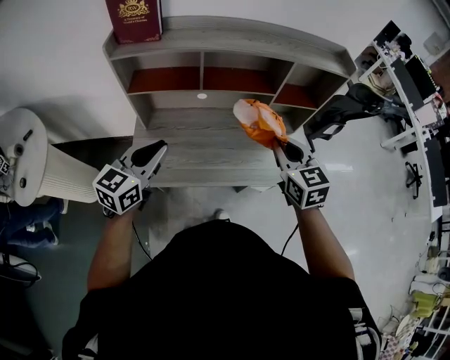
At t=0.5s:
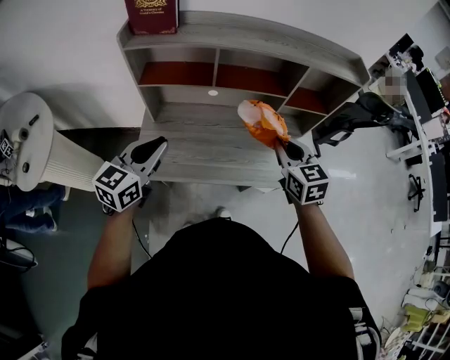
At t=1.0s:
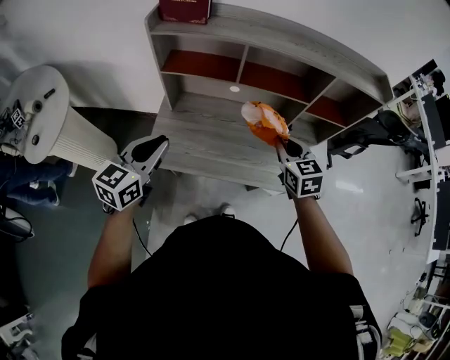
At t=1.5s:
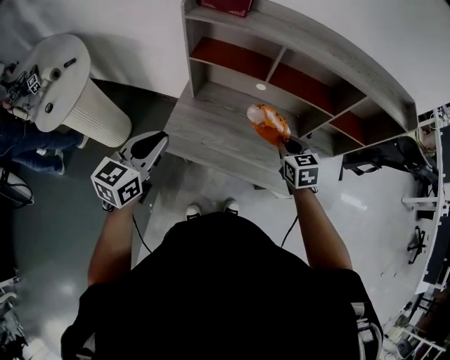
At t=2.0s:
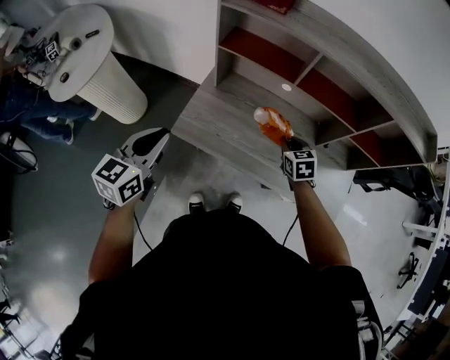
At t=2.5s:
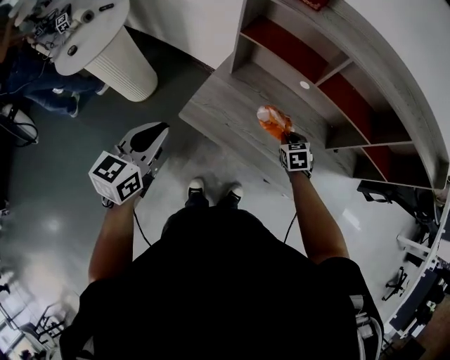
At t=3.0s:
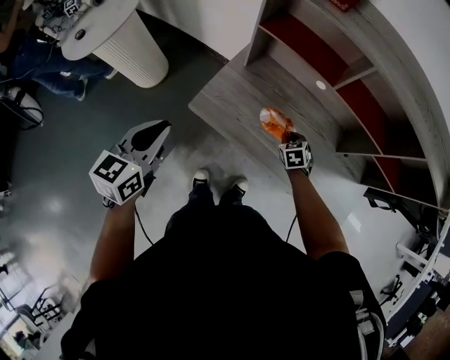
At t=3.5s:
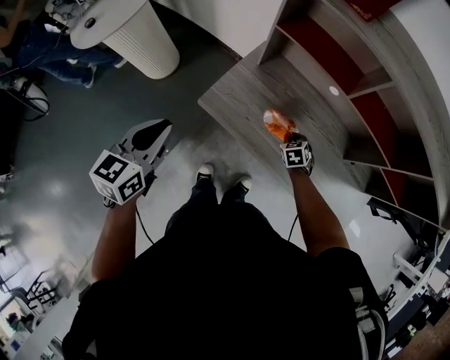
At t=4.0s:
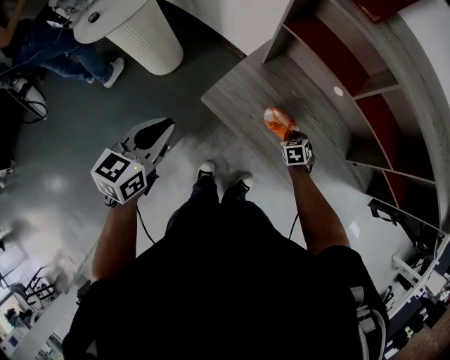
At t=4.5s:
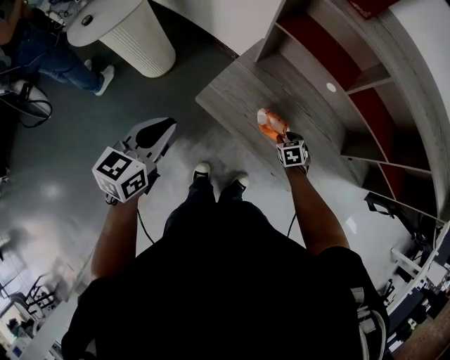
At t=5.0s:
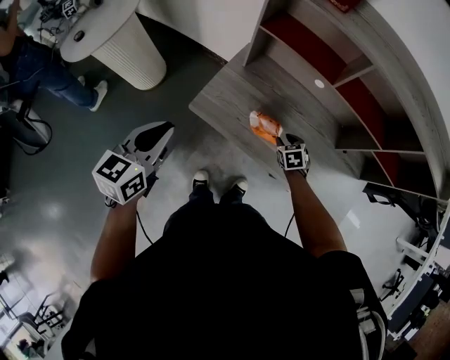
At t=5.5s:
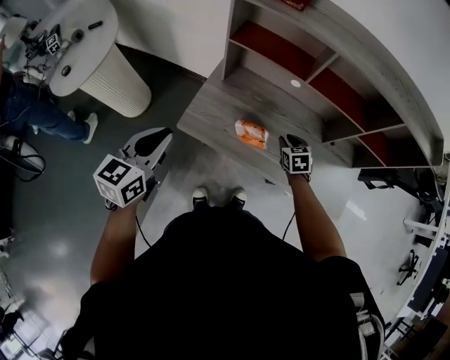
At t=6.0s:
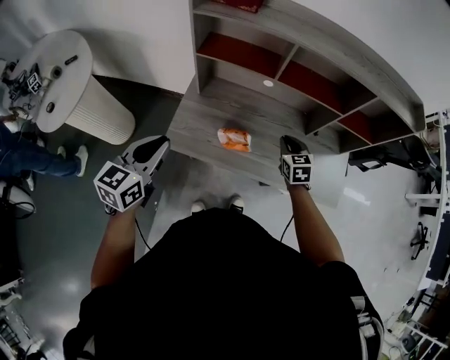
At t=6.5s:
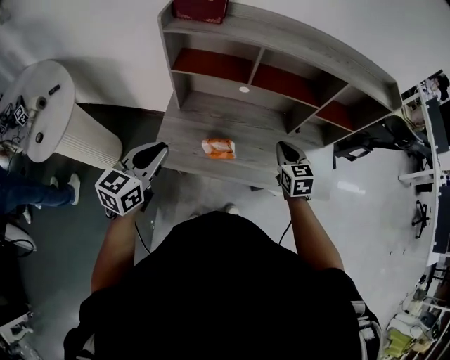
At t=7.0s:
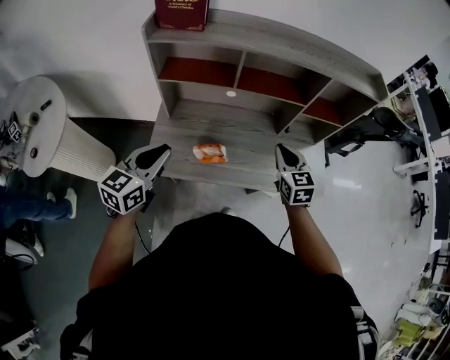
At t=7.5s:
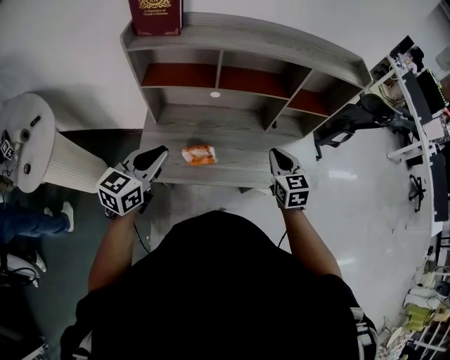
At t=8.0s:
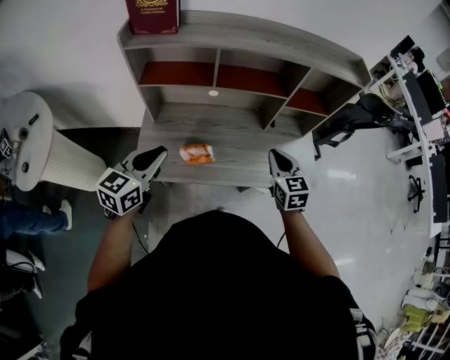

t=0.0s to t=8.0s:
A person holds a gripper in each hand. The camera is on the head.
t=0.0s to t=2.0s: The right gripper moves downward, to the left and forward, about 30 cm, and changes its angle by about 30 degrees. The left gripper goes approximately 15 cm to the left and backward, and turns by roughly 30 degrees.
t=2.0s to t=4.0s: The right gripper is displaced downward by approximately 20 cm, and changes its angle by approximately 20 degrees; the left gripper goes some 10 cm to the left and downward.
t=4.0s to t=6.0s: The right gripper goes roughly 25 cm upward and to the right, turns by approximately 40 degrees, and opens, then closes again. The left gripper heads to the right and upward, covering some 10 cm, and swivels roughly 20 degrees.
t=6.0s to t=8.0s: The left gripper goes about 10 cm to the right and forward. Meanwhile the right gripper is displaced upward, to the right and backward by approximately 15 cm.

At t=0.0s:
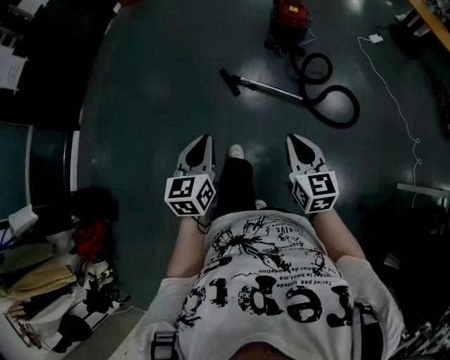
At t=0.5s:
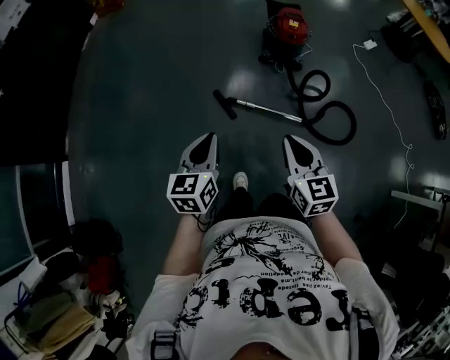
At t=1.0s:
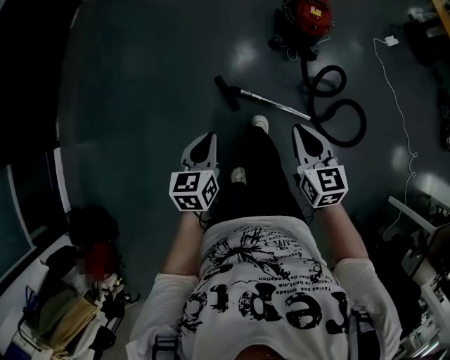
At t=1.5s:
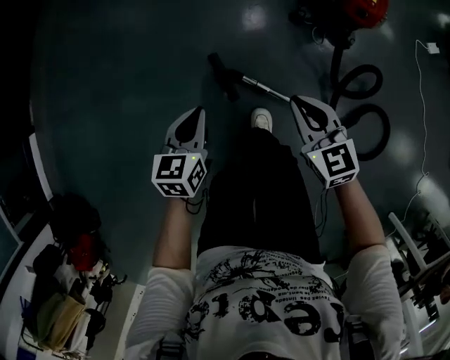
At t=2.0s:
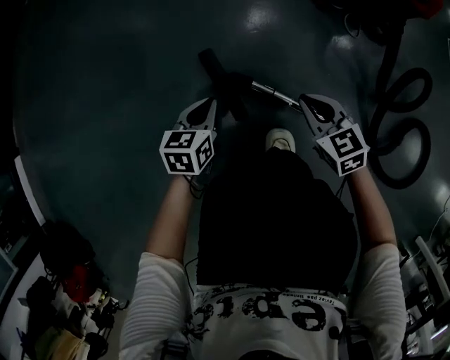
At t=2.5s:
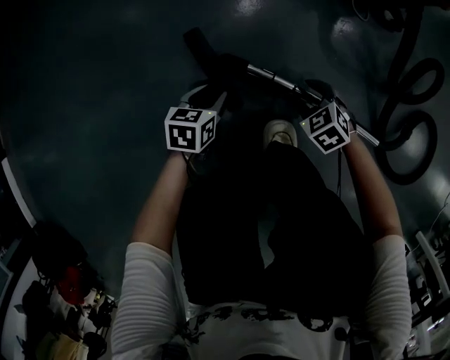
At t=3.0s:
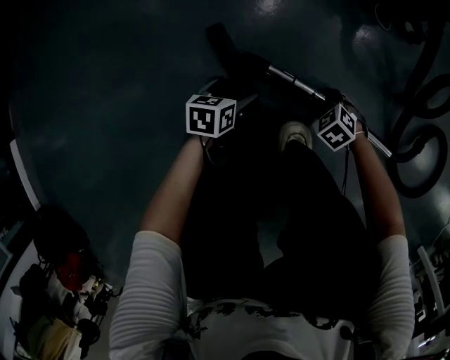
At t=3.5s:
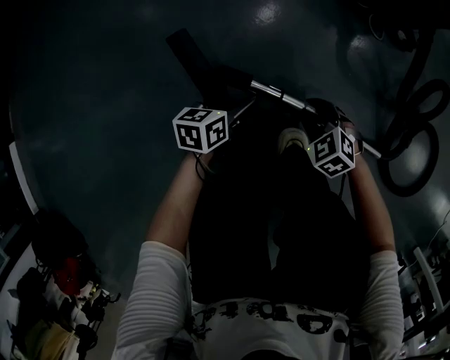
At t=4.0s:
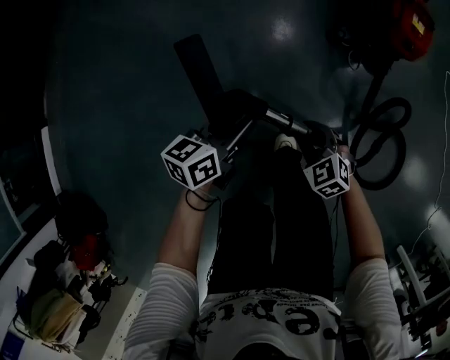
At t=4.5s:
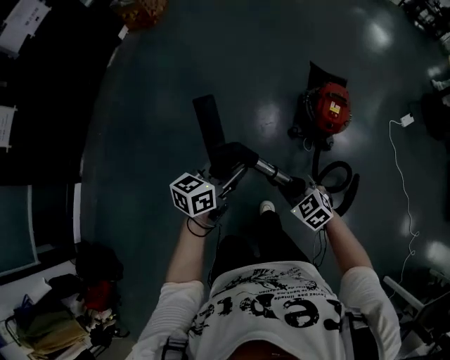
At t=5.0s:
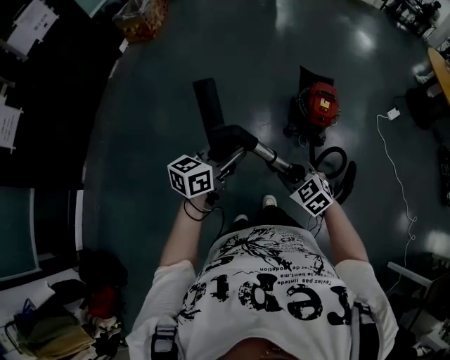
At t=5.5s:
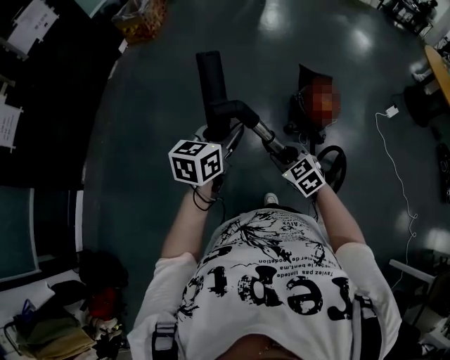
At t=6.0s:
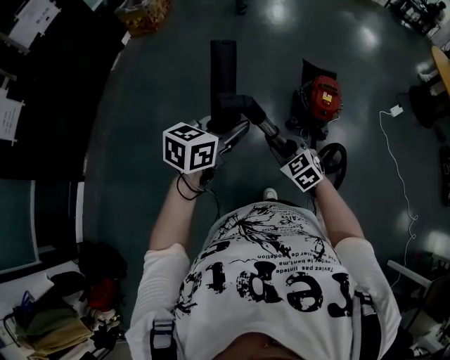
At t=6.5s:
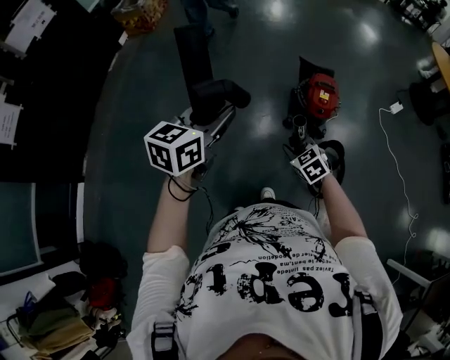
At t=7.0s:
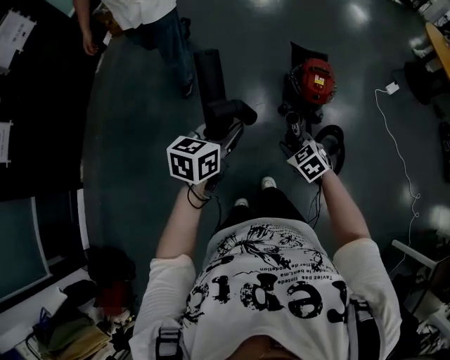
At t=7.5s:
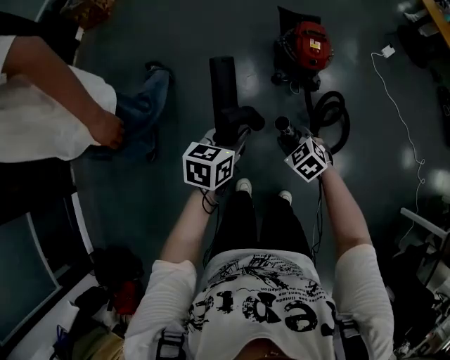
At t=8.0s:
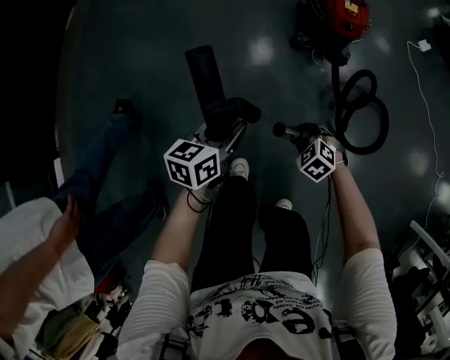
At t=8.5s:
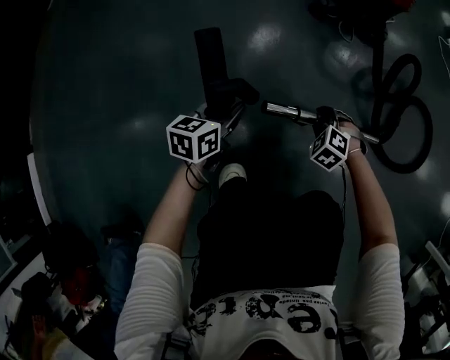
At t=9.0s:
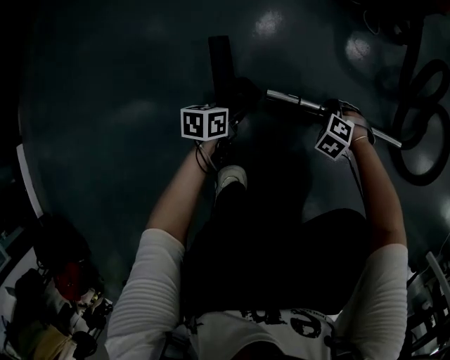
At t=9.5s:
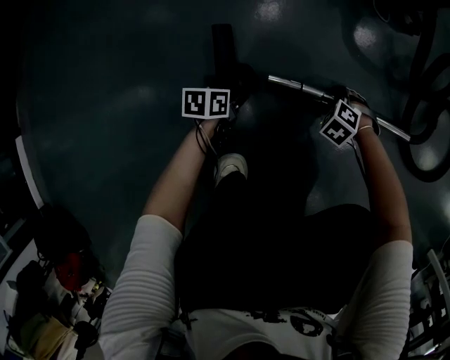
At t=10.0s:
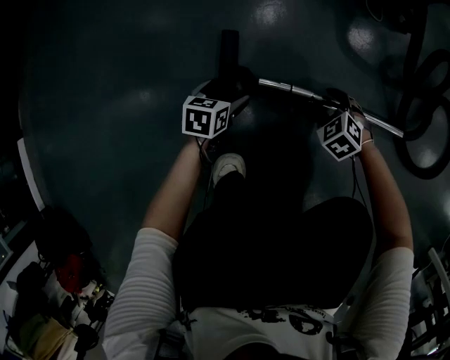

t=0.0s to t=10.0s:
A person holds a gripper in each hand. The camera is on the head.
t=0.0s to t=2.0s: Both grippers are carried forward, some 60 cm. The two grippers go some 80 cm downward. The left gripper swivels roughly 30 degrees; the right gripper swivels about 30 degrees.
t=2.0s to t=4.0s: The left gripper goes approximately 30 cm upward, rotates some 20 degrees, and opens and closes again. Meanwhile the right gripper moves upward, approximately 20 cm, changes its angle by some 30 degrees, and opens its fingers.
t=4.0s to t=6.0s: The grippers both shift upward by roughly 60 cm. The left gripper turns by roughly 30 degrees.
t=6.0s to t=8.0s: The grippers both shift downward by about 40 cm. The right gripper changes its angle by some 30 degrees.
t=8.0s to t=10.0s: The two grippers go roughly 50 cm downward. The left gripper changes its angle by some 20 degrees, and opens its fingers; the right gripper opens.

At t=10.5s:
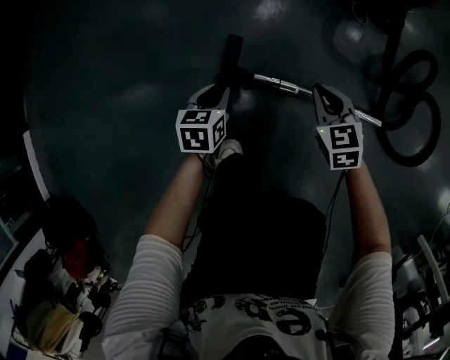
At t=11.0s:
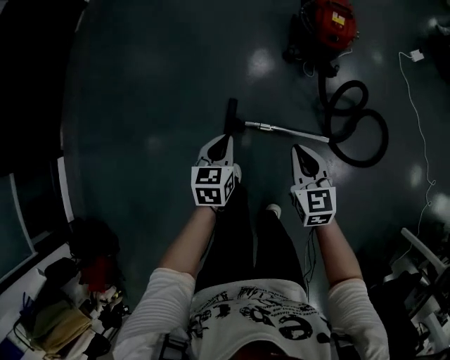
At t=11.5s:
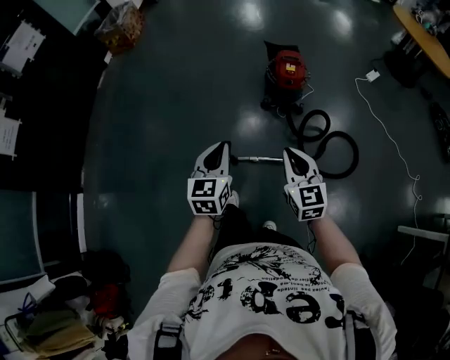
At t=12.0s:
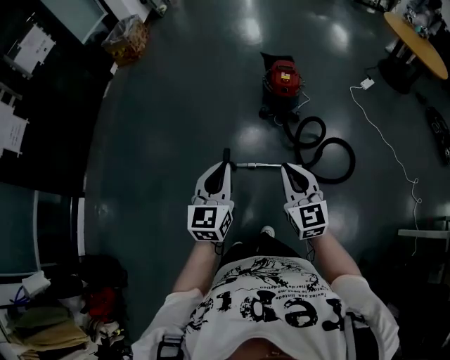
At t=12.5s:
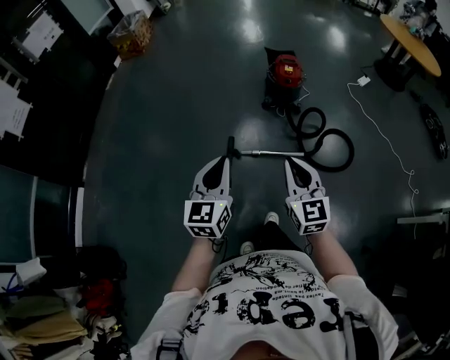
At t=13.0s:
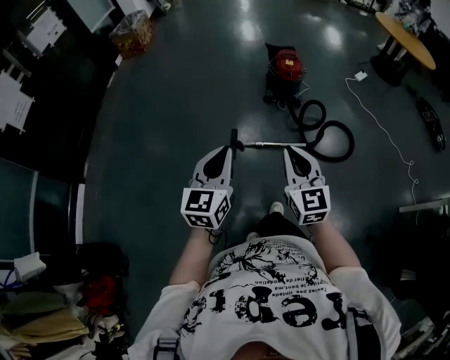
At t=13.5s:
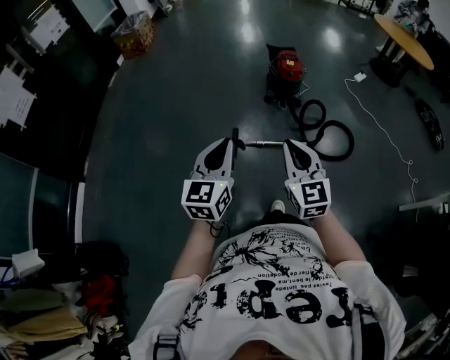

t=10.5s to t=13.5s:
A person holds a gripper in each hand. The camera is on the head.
t=10.5s to t=12.0s: The two grippers go some 90 cm upward. The right gripper angles its fingers upward, by some 30 degrees. The left gripper tips its fingers upward by approximately 40 degrees.
t=12.0s to t=13.5s: Both grippers travel together backward and to the left, about 25 cm.

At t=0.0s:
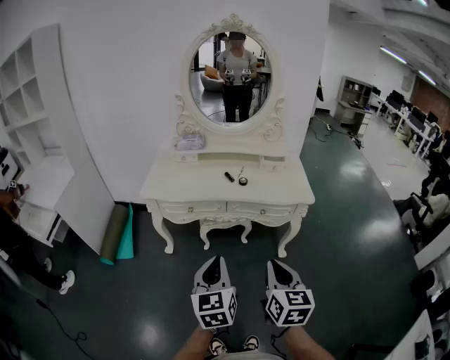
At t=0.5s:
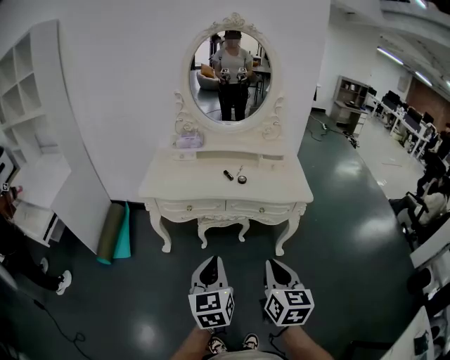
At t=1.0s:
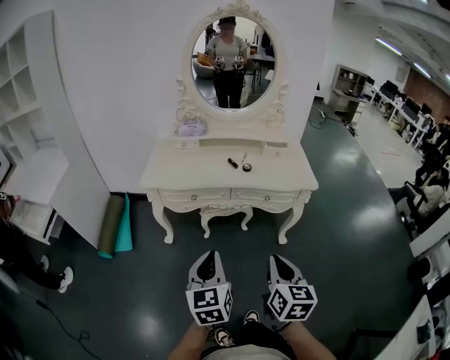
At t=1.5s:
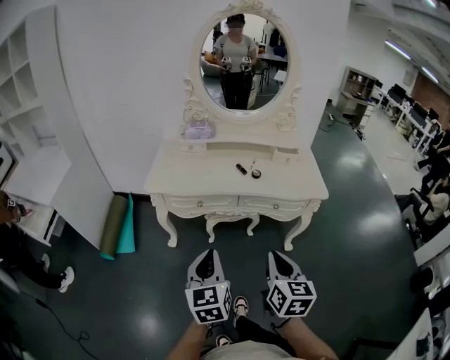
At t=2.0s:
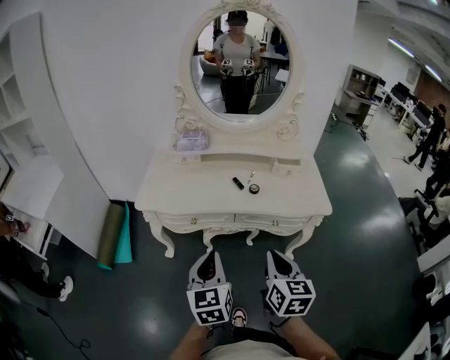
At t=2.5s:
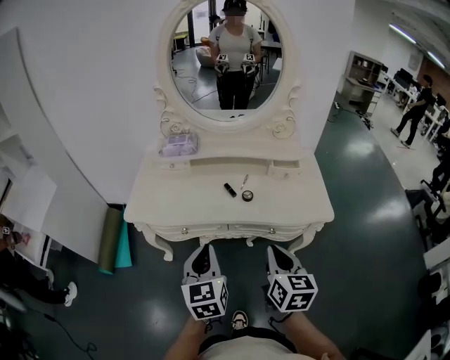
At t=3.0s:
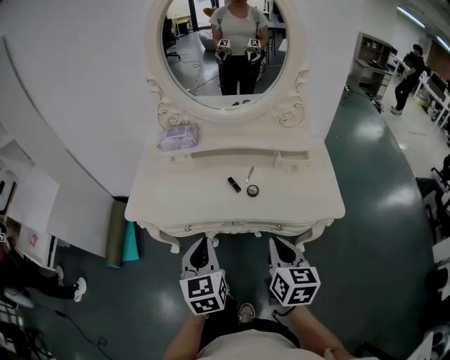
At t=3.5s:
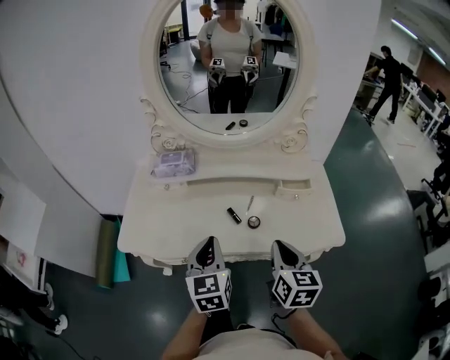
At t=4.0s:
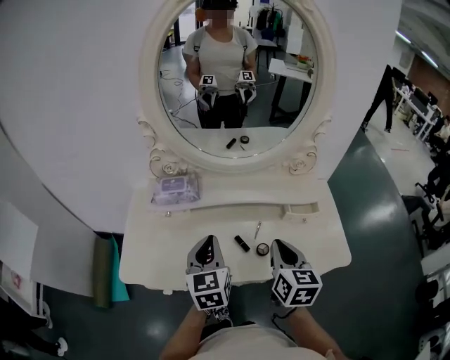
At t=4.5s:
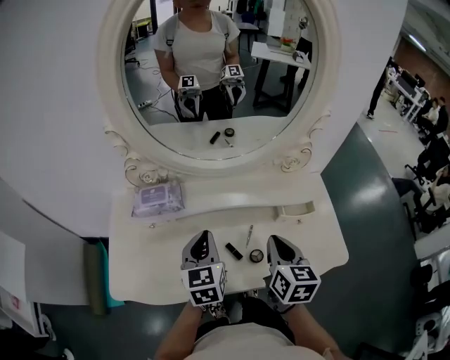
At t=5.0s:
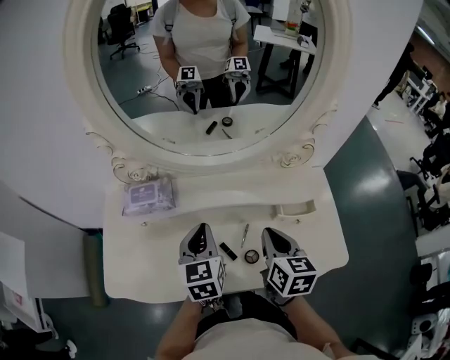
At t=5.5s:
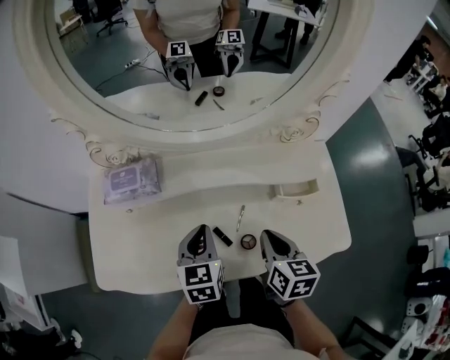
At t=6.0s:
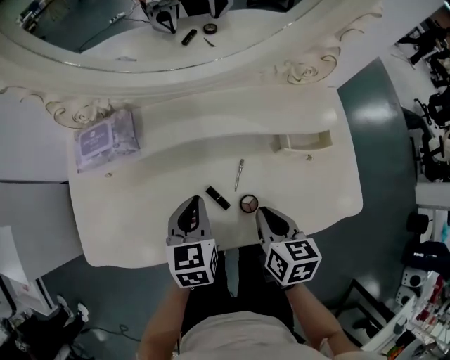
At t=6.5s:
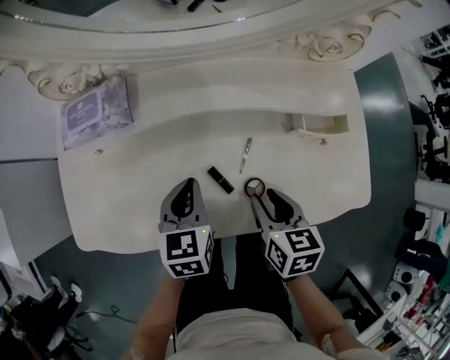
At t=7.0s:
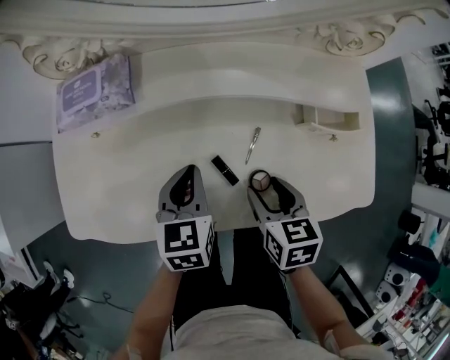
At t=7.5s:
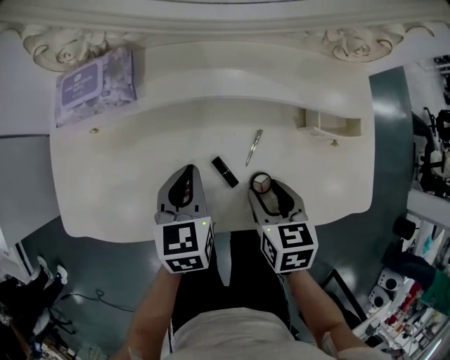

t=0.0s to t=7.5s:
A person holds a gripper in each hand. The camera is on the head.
t=0.0s to t=2.0s: Both grippers move forward, about 15 cm.
t=2.0s to t=4.0s: The two grippers go roughly 35 cm forward.
t=4.0s to t=5.5s: The left gripper shifts approximately 15 cm downward, forward and to the right. Meanwhile the right gripper travels downward and forward by some 10 cm.
t=5.5s to t=7.5s: The two grippers go approximately 10 cm downward. The right gripper turns by some 20 degrees, and opens its fingers.
